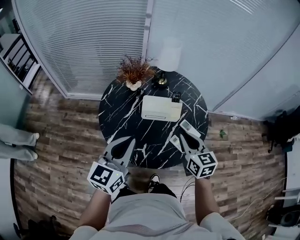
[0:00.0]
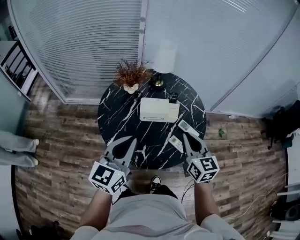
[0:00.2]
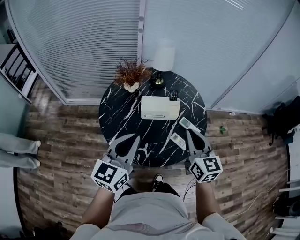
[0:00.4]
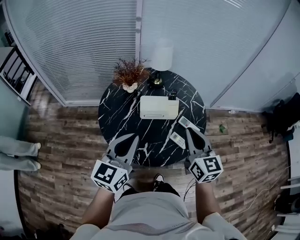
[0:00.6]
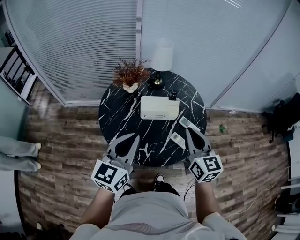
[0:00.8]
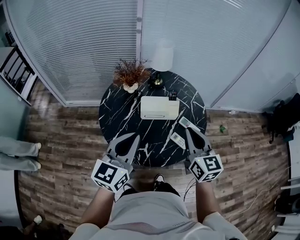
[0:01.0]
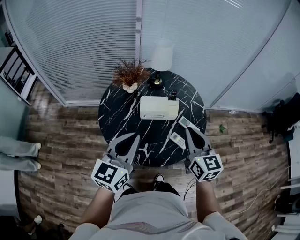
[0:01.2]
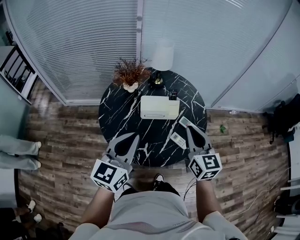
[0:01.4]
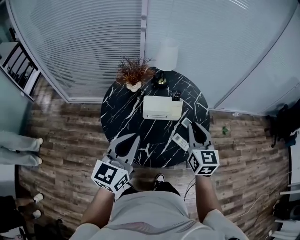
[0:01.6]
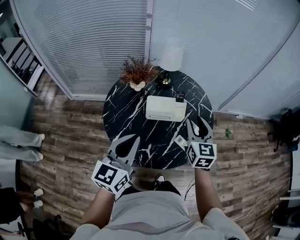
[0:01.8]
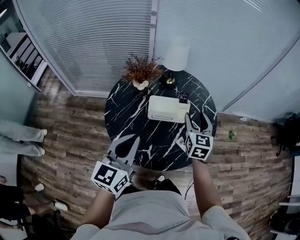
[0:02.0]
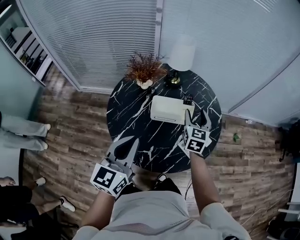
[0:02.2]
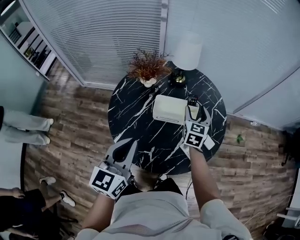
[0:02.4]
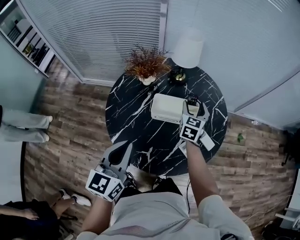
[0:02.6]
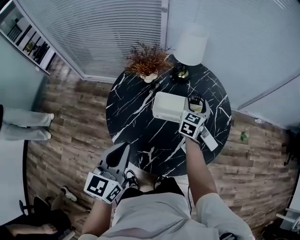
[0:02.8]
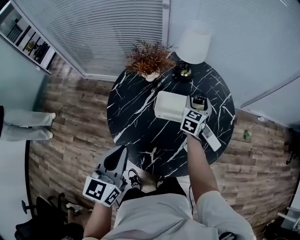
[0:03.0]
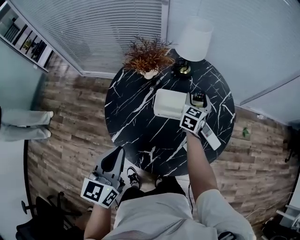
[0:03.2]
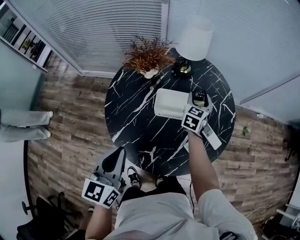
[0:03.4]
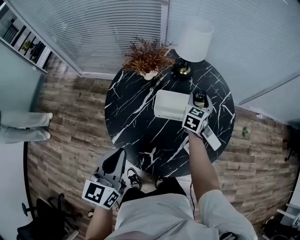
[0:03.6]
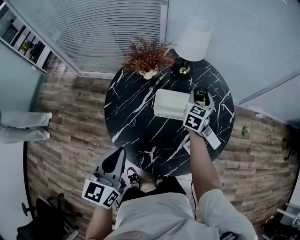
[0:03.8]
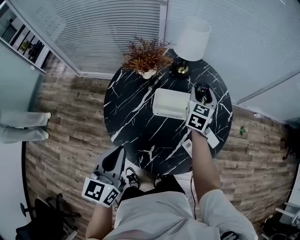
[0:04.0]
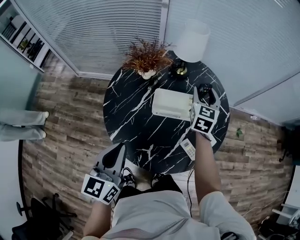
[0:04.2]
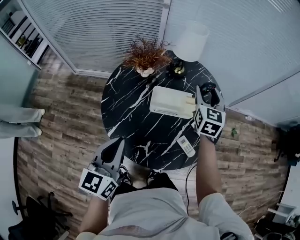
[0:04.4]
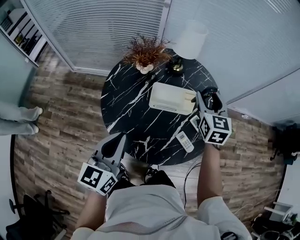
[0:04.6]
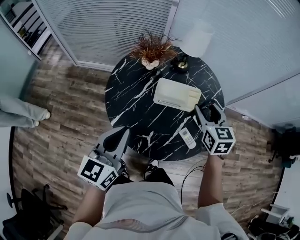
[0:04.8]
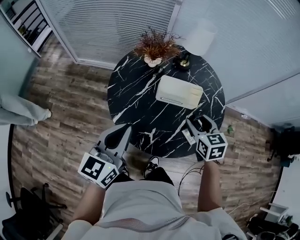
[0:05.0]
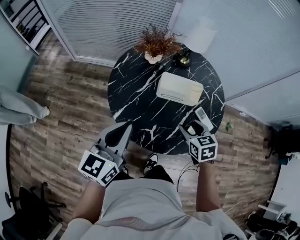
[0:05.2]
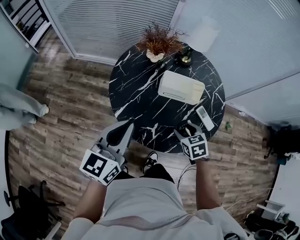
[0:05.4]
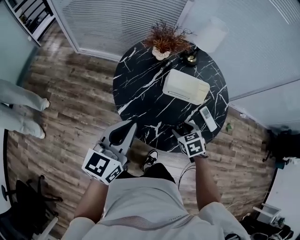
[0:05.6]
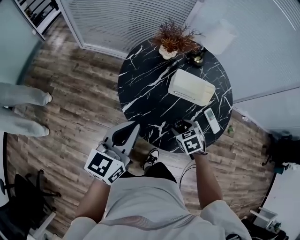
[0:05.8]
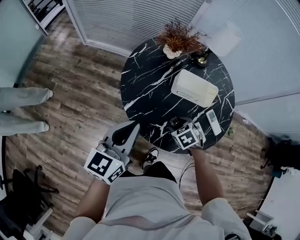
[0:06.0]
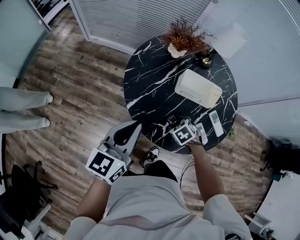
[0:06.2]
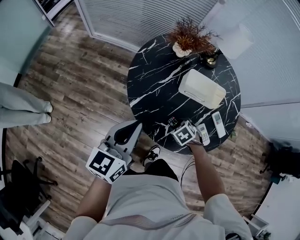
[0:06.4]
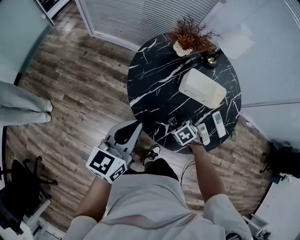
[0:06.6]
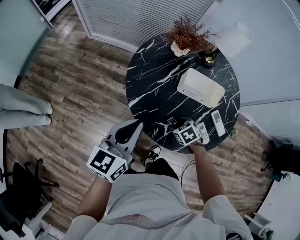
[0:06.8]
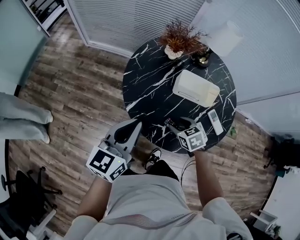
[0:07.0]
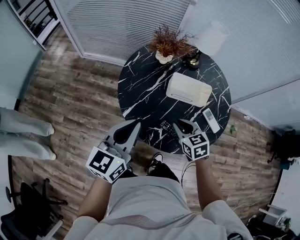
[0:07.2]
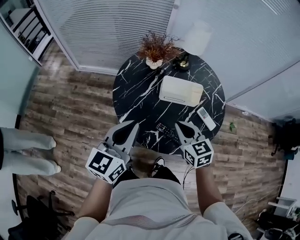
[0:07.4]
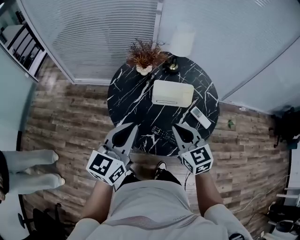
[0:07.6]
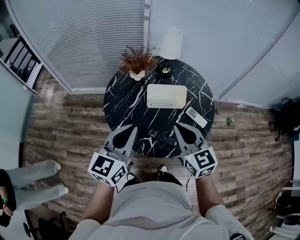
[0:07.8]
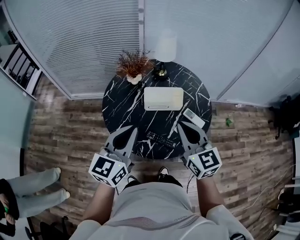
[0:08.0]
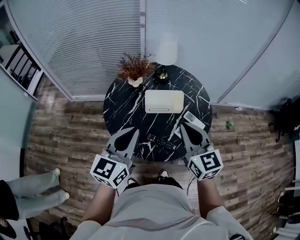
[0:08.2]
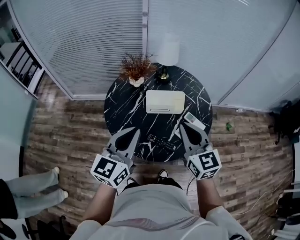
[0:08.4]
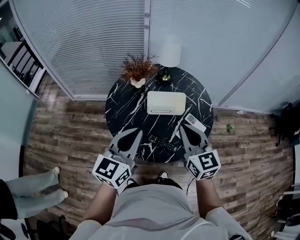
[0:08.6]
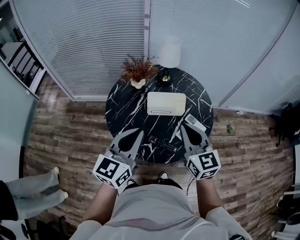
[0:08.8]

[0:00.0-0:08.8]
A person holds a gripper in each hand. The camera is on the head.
0:00.0 to 0:01.4: The right gripper moves upward, approximately 5 cm.
0:01.4 to 0:03.0: The right gripper heads forward and downward, covering roughly 35 cm, rotates approximately 20 degrees, and opens its fingers. Meanwhile the left gripper goes about 10 cm downward, and swivels approximately 20 degrees.
0:03.0 to 0:04.4: The right gripper goes approximately 15 cm upward.
0:04.4 to 0:05.8: The left gripper changes place by some 5 cm; the right gripper moves backward, downward and to the left, about 35 cm, and angles its fingers downward, by about 50 degrees.
0:05.8 to 0:07.4: The right gripper travels upward by about 15 cm, angles its fingers upward, by approximately 30 degrees, and closes its fingers. The left gripper moves some 5 cm.
0:07.4 to 0:08.8: The left gripper travels to the right by approximately 5 cm. The right gripper shifts some 15 cm upward and to the right, and turns by about 20 degrees.

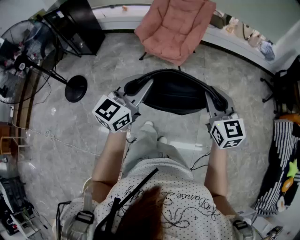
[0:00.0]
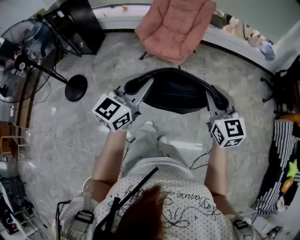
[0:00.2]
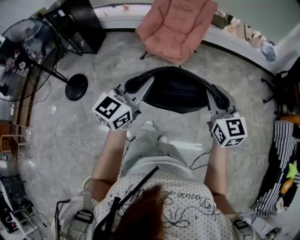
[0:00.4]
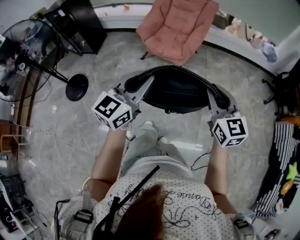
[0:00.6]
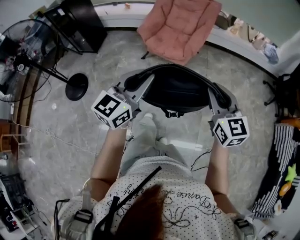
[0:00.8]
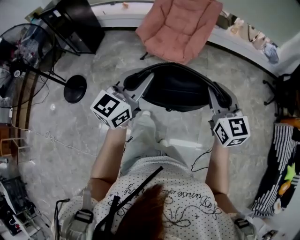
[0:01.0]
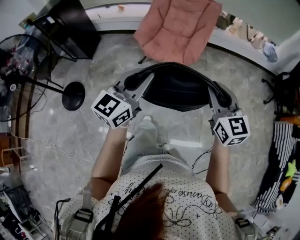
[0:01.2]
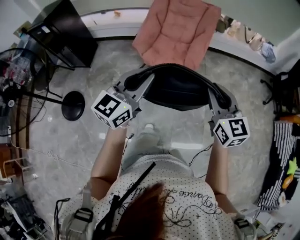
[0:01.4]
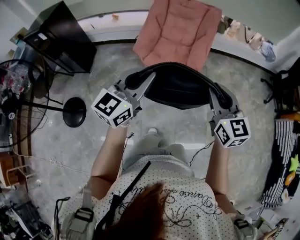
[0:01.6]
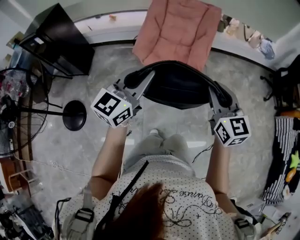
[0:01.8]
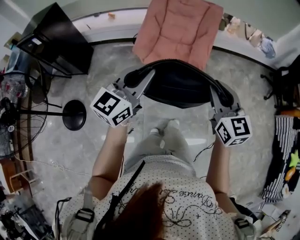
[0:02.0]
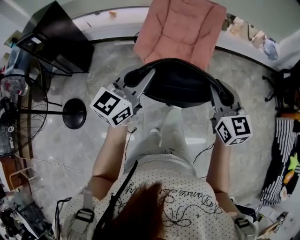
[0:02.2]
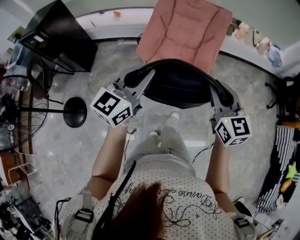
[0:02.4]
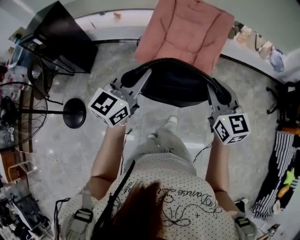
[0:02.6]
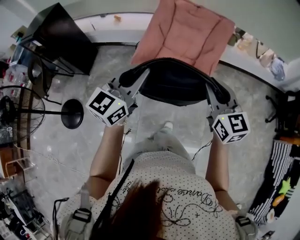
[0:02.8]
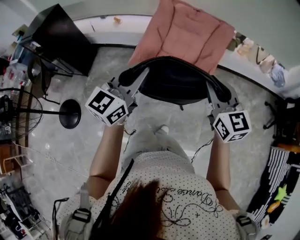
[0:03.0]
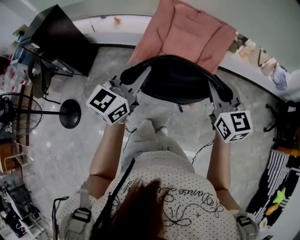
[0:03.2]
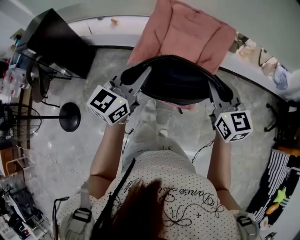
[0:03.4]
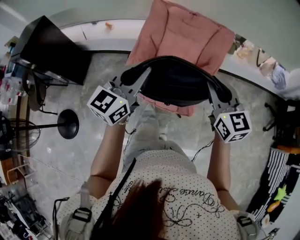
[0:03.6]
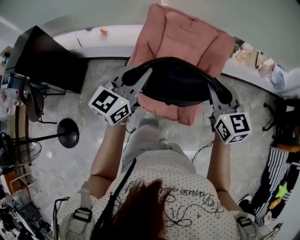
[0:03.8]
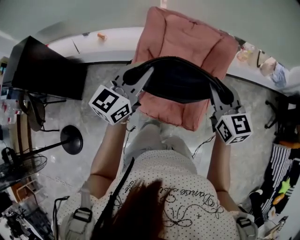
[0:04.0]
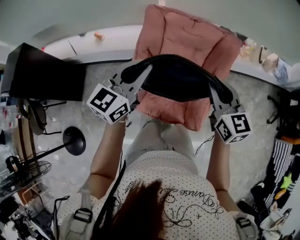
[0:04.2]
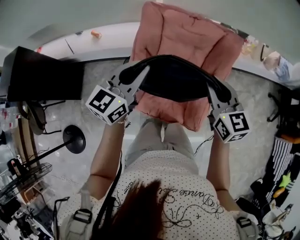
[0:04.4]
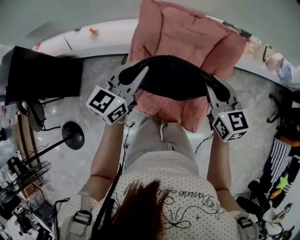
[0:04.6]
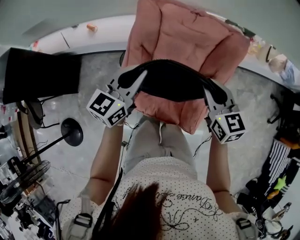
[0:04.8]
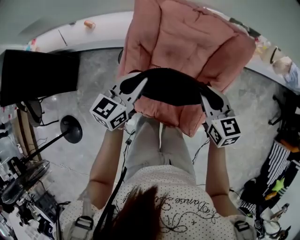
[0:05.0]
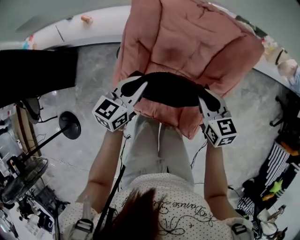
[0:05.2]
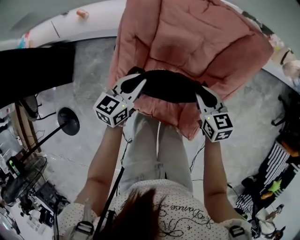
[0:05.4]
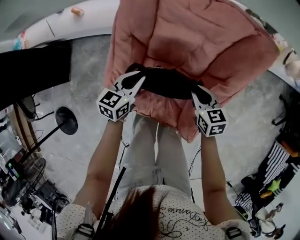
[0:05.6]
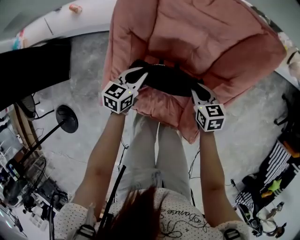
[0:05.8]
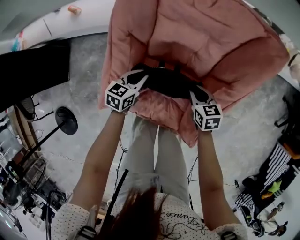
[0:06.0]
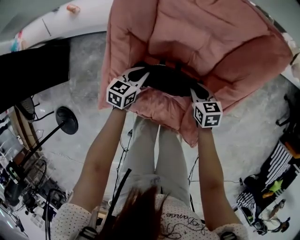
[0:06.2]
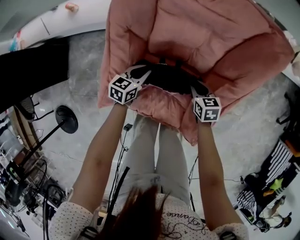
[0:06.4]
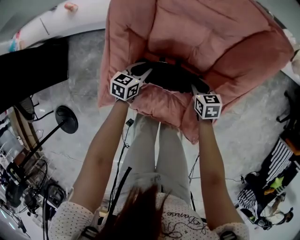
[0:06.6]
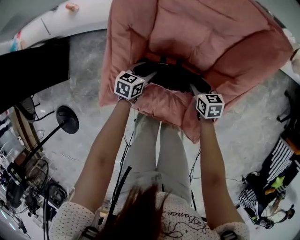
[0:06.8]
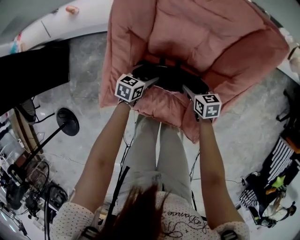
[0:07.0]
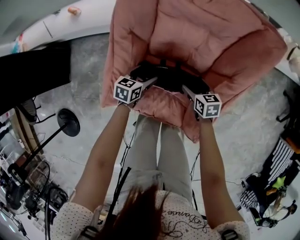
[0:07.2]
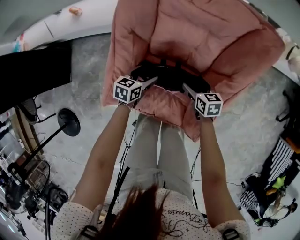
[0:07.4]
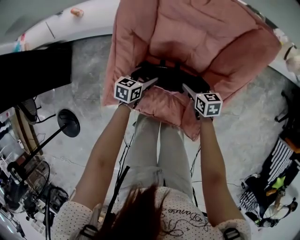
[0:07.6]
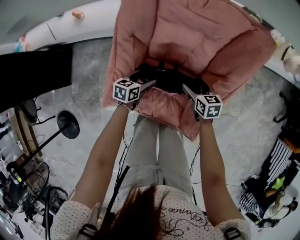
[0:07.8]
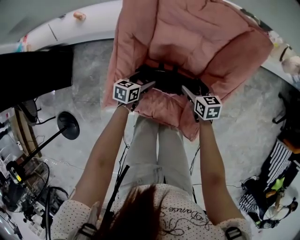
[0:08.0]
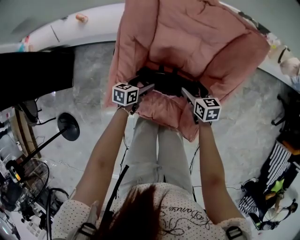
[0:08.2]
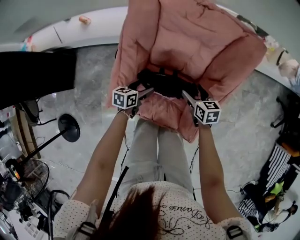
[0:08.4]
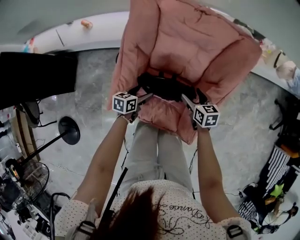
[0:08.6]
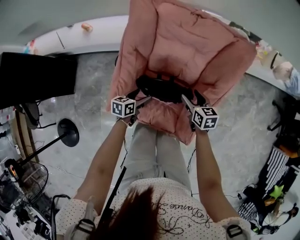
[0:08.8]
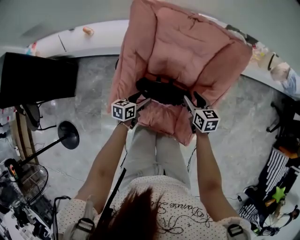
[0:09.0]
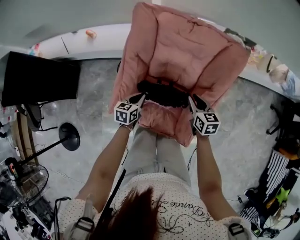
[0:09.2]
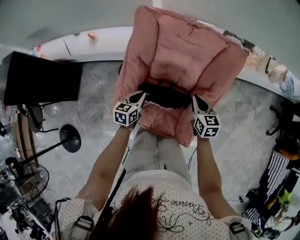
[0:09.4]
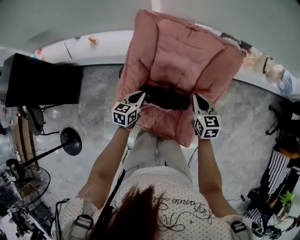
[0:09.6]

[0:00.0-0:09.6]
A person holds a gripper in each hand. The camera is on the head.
0:00.0 to 0:01.6: The two grippers go about 30 cm forward and to the left.
0:01.6 to 0:03.2: Both grippers travel together forward, about 25 cm.
0:03.2 to 0:04.8: The two grippers go about 30 cm forward.
0:04.8 to 0:06.4: The grippers both shift downward by some 40 cm. The left gripper rotates roughly 30 degrees, while the right gripper rotates about 30 degrees.
0:06.4 to 0:08.0: The right gripper is displaced upward by roughly 5 cm, and opens up. The left gripper opens its fingers.
0:08.0 to 0:09.6: Both grippers travel together upward, roughly 20 cm. The right gripper swivels approximately 20 degrees, and closes its fingers. The left gripper closes up.

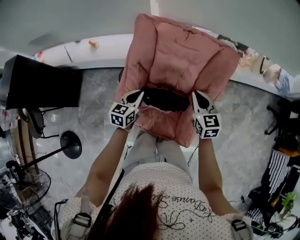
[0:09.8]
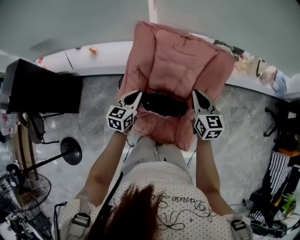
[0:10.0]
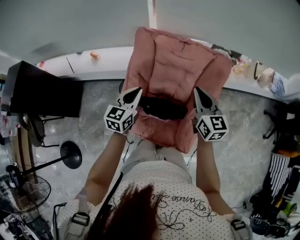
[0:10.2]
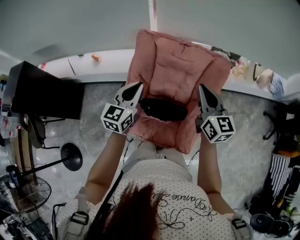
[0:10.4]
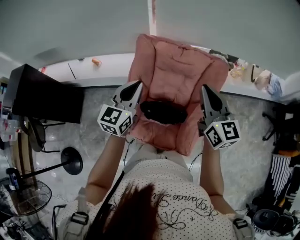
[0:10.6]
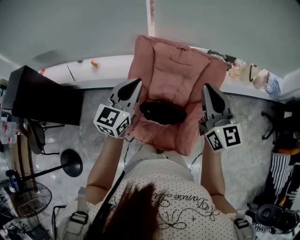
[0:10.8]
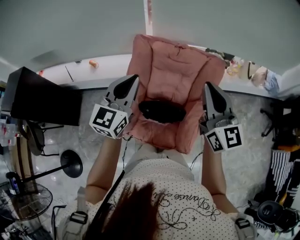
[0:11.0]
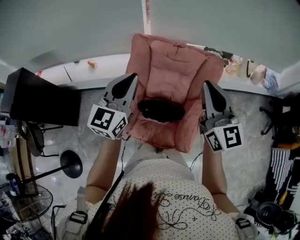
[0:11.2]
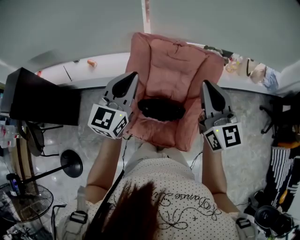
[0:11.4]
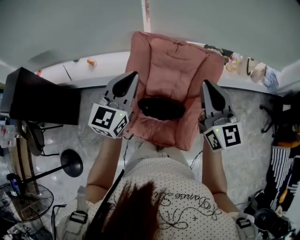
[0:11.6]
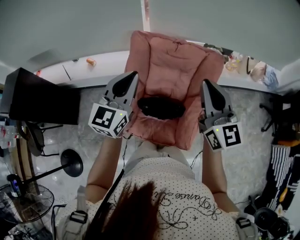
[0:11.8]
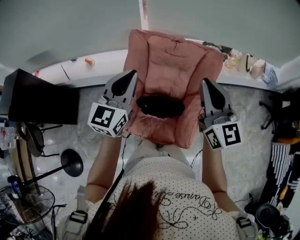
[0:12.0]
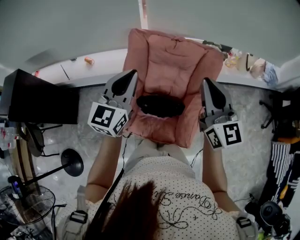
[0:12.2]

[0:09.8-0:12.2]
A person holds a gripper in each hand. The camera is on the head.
0:09.8 to 0:11.0: The two grippers go roughly 30 cm upward. The right gripper angles its fingers upward, by approximately 30 degrees, while the left gripper swivels some 30 degrees.
0:11.0 to 0:12.2: Neither gripper changes place.

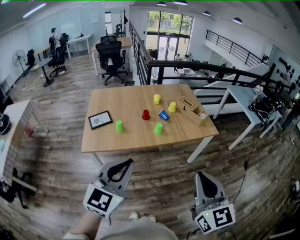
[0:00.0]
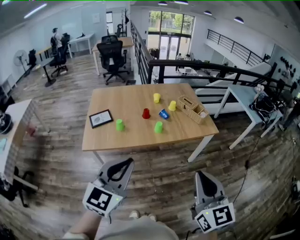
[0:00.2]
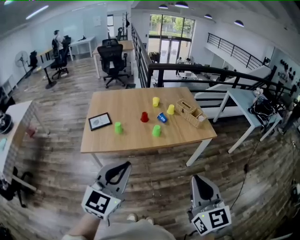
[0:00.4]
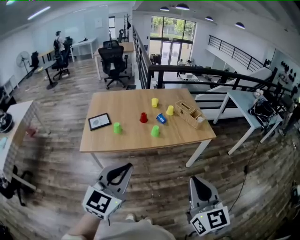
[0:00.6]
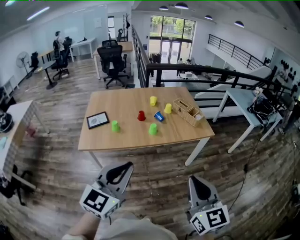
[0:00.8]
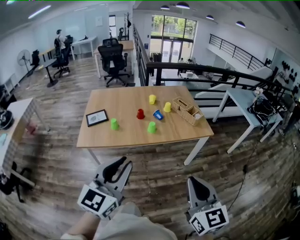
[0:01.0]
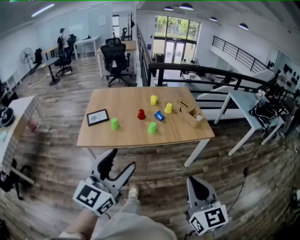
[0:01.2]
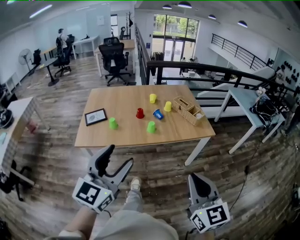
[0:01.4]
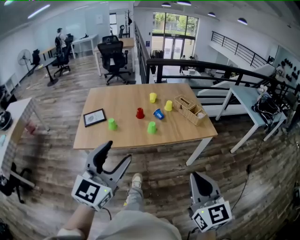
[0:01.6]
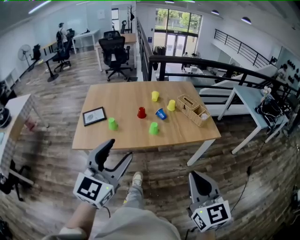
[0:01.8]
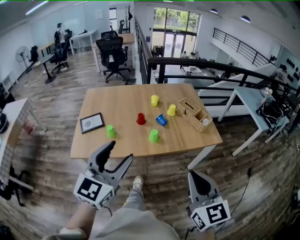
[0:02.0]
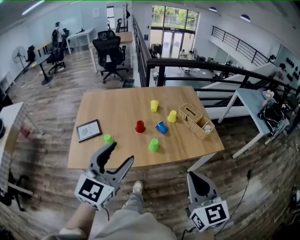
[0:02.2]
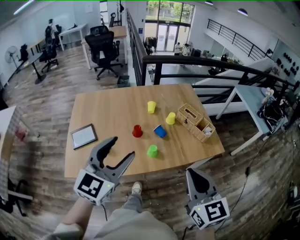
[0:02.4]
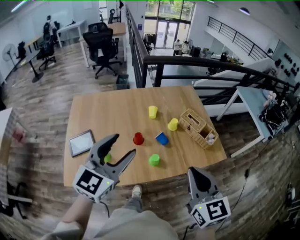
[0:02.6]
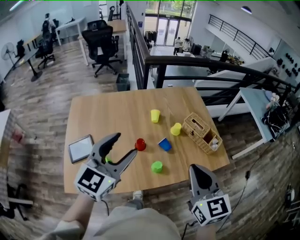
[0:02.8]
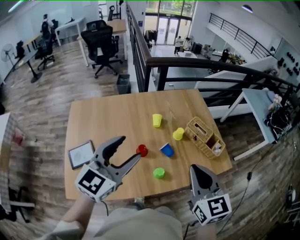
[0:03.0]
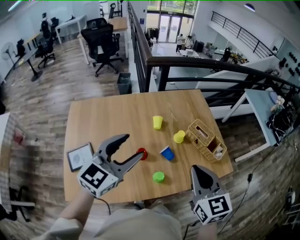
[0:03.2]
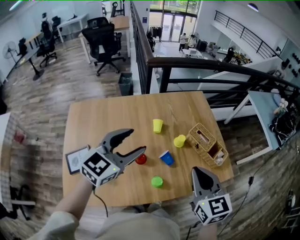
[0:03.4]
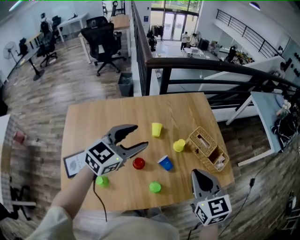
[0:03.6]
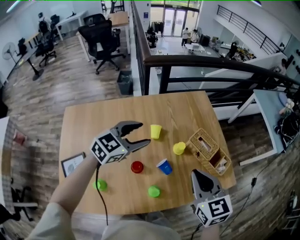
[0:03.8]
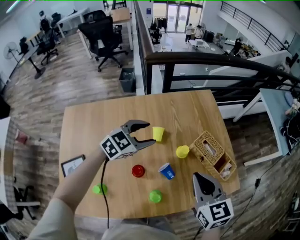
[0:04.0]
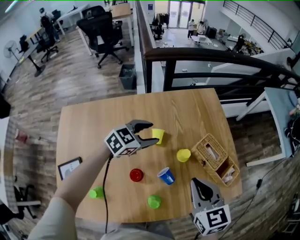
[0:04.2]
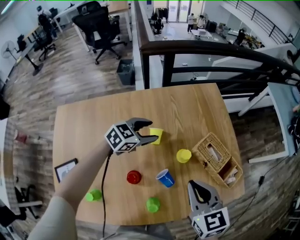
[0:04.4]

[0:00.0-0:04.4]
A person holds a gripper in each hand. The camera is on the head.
0:00.0 to 0:01.4: The two grippers go about 10 cm to the right. The left gripper opens.
0:01.4 to 0:03.0: The pair of grippers is taken forward, roughly 50 cm.
0:03.0 to 0:04.4: The left gripper shifts roughly 50 cm forward and downward, and rotates about 40 degrees. The right gripper travels forward and downward by about 25 cm.
